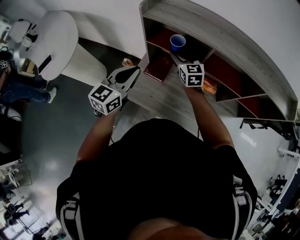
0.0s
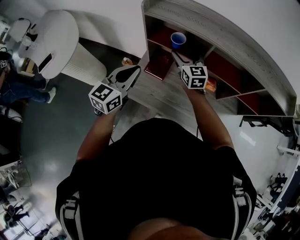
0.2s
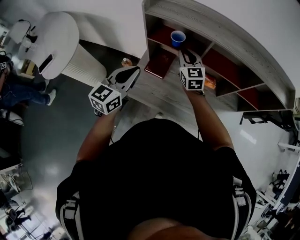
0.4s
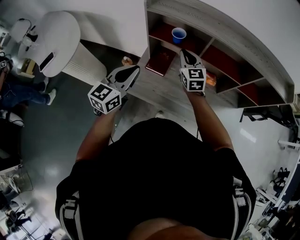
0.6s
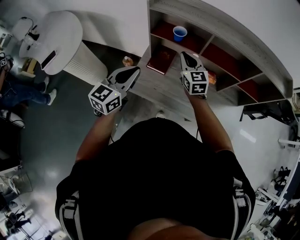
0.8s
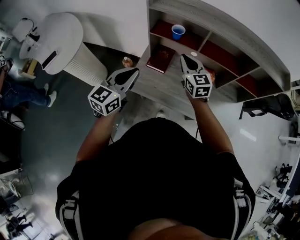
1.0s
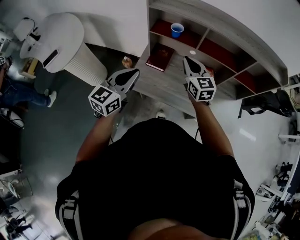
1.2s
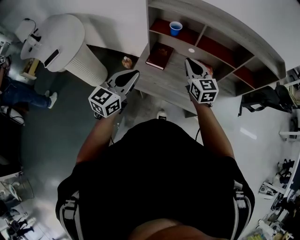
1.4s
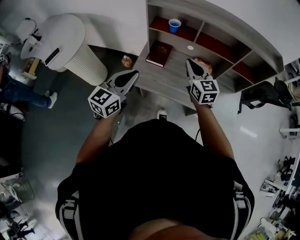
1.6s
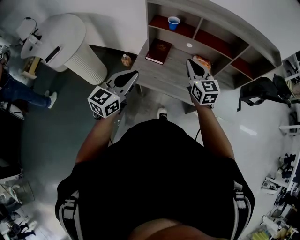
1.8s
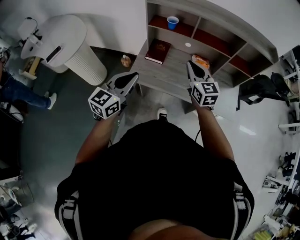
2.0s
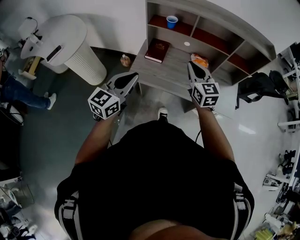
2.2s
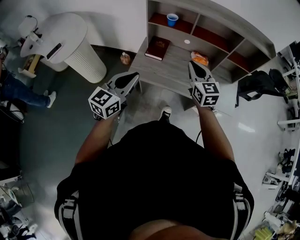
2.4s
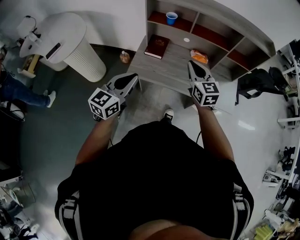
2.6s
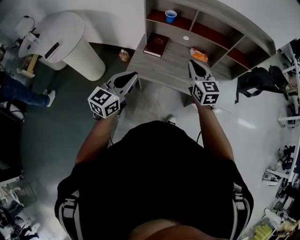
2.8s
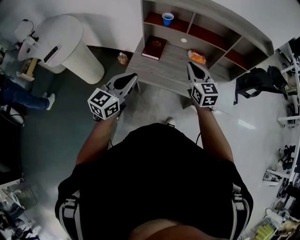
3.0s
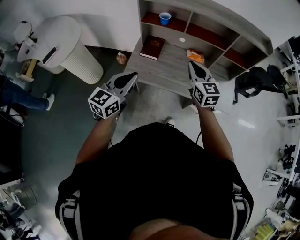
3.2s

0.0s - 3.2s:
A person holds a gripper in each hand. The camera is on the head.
0.0s - 1.6s: The two grippers go about 25 cm backward. The right gripper closes its fingers.
1.6s - 3.2s: The right gripper heads backward and to the right, covering some 10 cm. Meanwhile the left gripper goes some 5 cm backward.

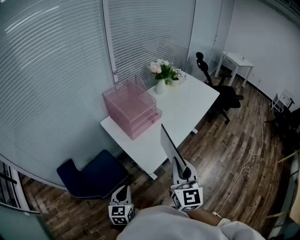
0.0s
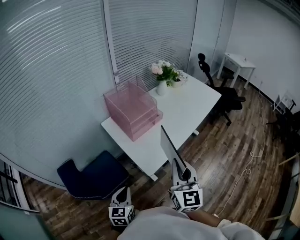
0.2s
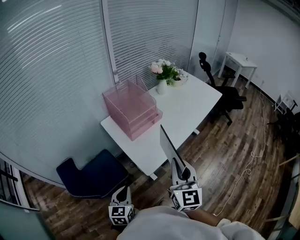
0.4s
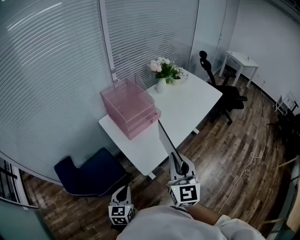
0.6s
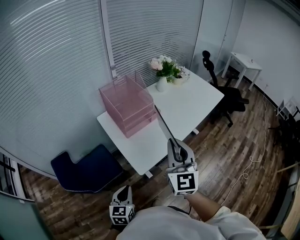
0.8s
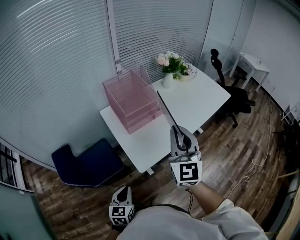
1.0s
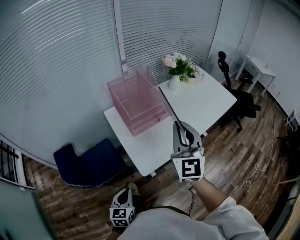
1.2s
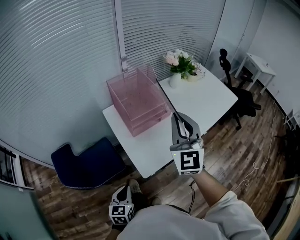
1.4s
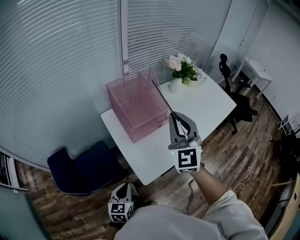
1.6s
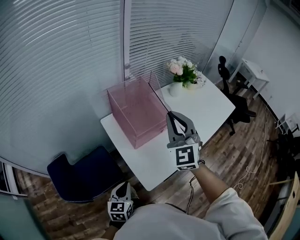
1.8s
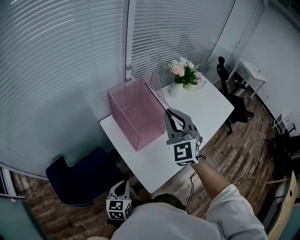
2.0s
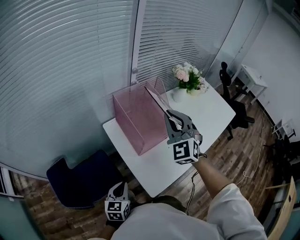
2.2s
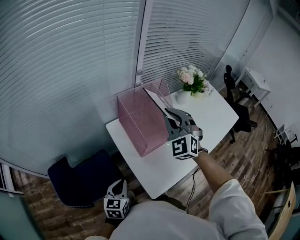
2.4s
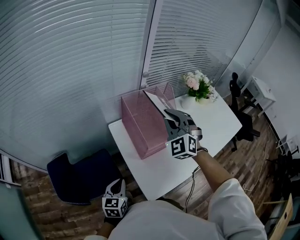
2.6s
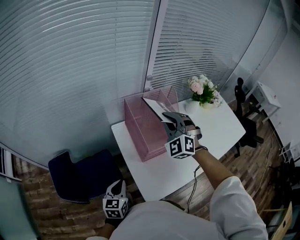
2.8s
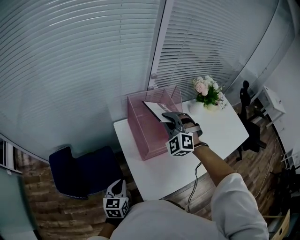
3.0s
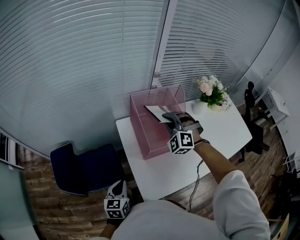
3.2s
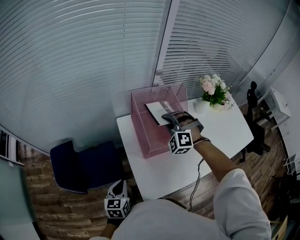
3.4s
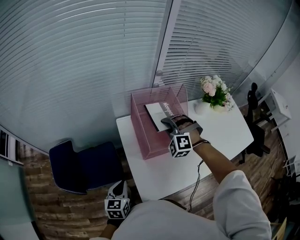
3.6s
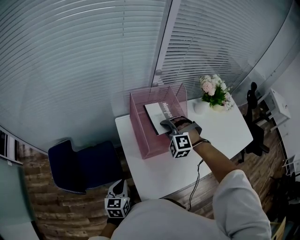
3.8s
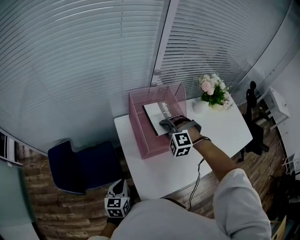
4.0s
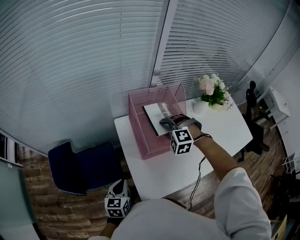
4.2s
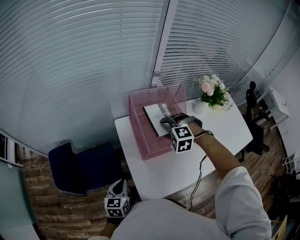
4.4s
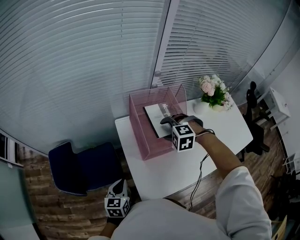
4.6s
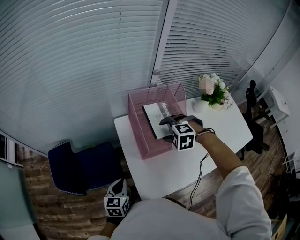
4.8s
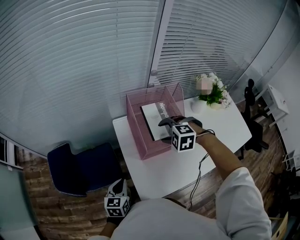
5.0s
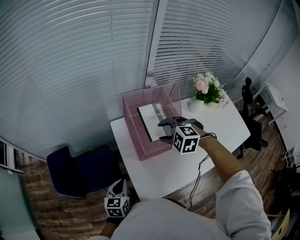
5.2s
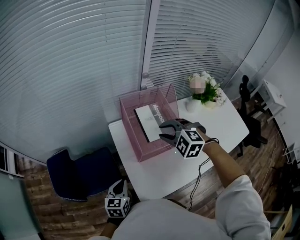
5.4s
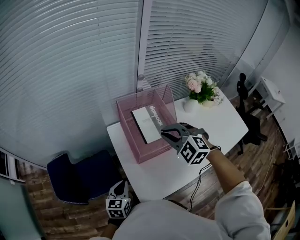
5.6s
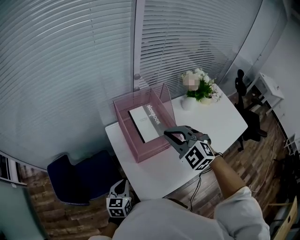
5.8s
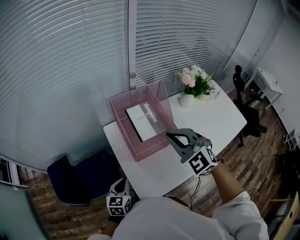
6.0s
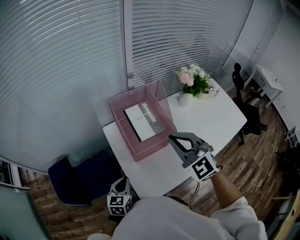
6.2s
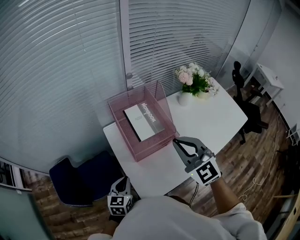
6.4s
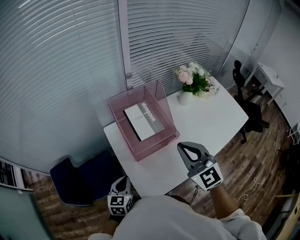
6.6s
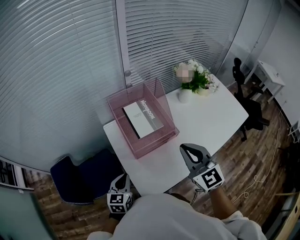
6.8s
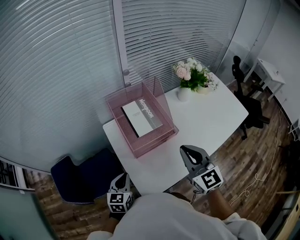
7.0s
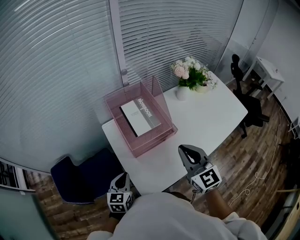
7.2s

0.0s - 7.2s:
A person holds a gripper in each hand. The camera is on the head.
0.0s - 1.4s: The left gripper is displaced downward and forward by approximately 10 cm. Meanwhile the right gripper heads forward, covering some 20 cm, and rotates roughly 20 degrees.
1.4s - 2.8s: The grippers both shift forward and to the left by about 25 cm. The right gripper rotates around the line of its fingers by roughly 40 degrees, counterclockwise from behind.
2.8s - 4.4s: The right gripper is displaced downward by approximately 15 cm, points its fingers approximately 40 degrees further downward, and opens up.
4.4s - 5.8s: The right gripper shifts about 15 cm upward and backward, tips its fingers upward by about 30 degrees, and closes up.
5.8s - 7.2s: The right gripper shifts approximately 15 cm backward and to the right, and swivels approximately 50 degrees.

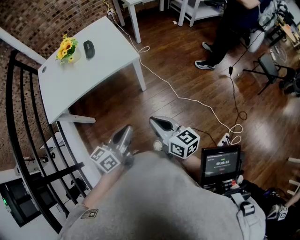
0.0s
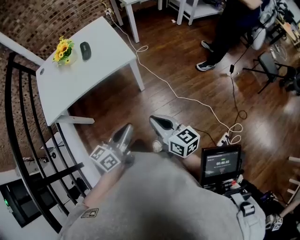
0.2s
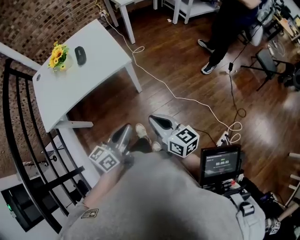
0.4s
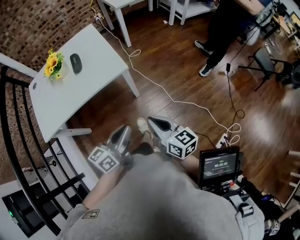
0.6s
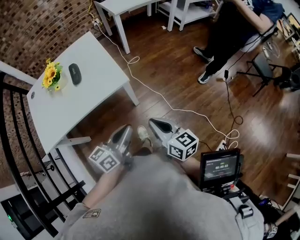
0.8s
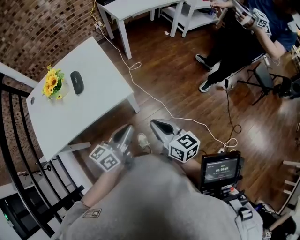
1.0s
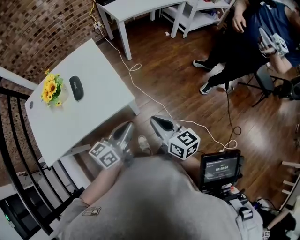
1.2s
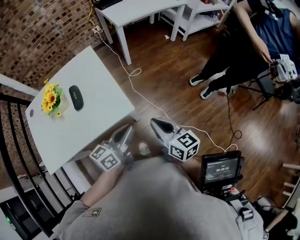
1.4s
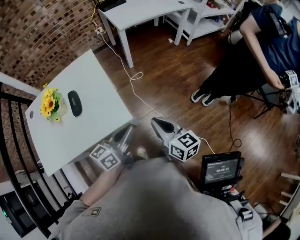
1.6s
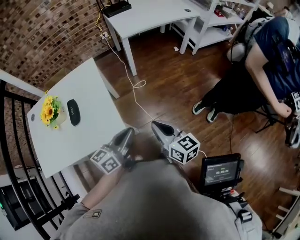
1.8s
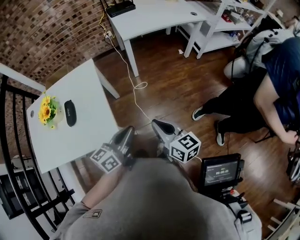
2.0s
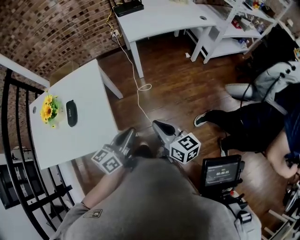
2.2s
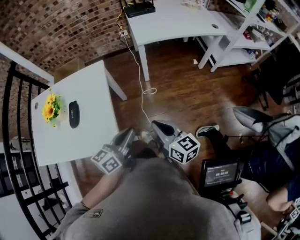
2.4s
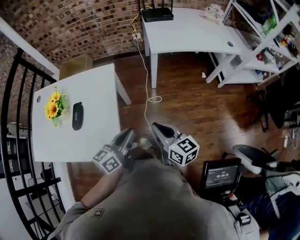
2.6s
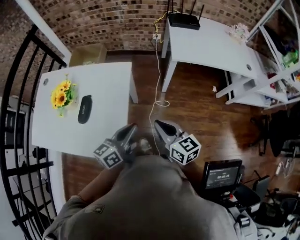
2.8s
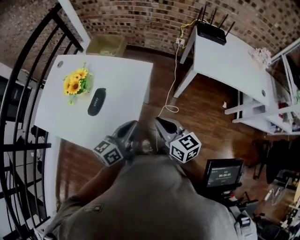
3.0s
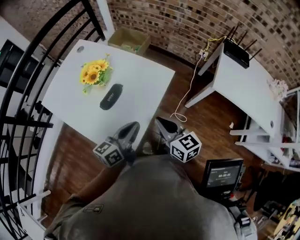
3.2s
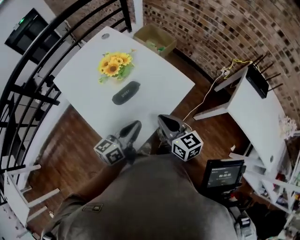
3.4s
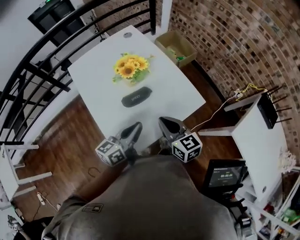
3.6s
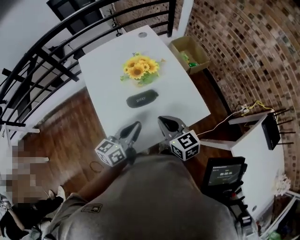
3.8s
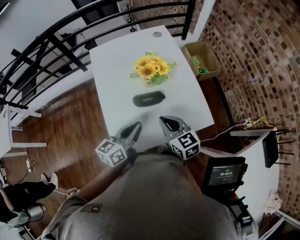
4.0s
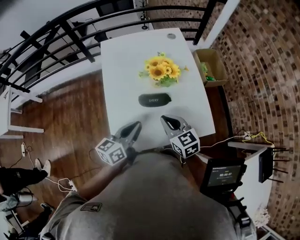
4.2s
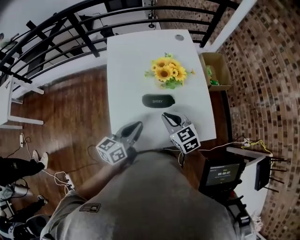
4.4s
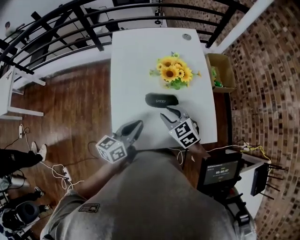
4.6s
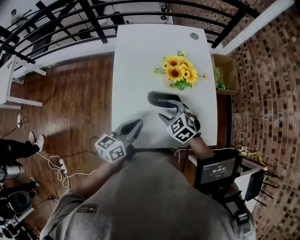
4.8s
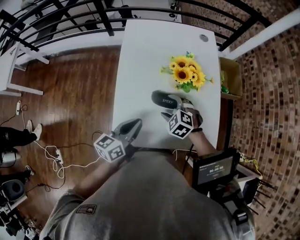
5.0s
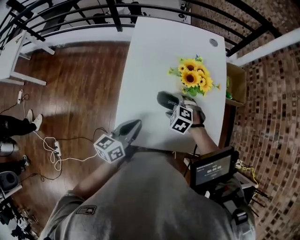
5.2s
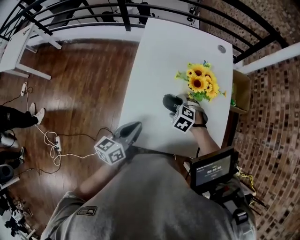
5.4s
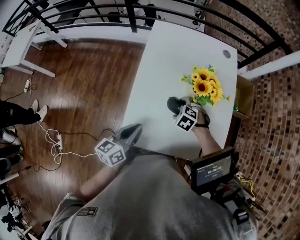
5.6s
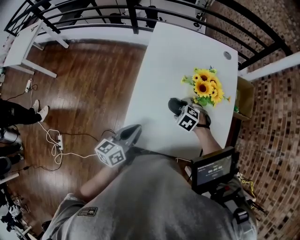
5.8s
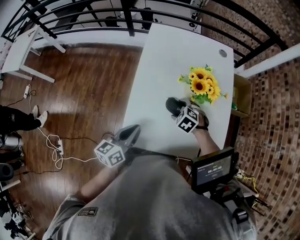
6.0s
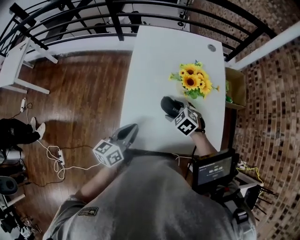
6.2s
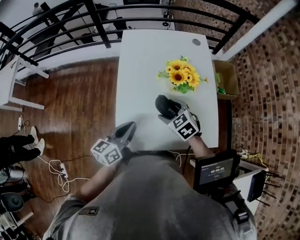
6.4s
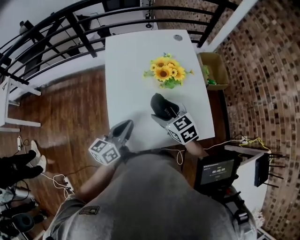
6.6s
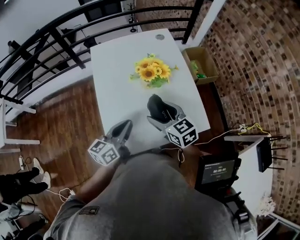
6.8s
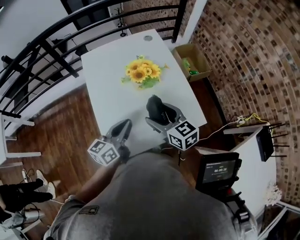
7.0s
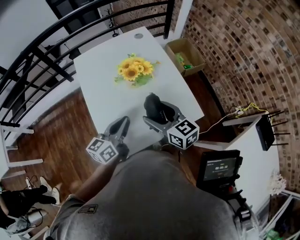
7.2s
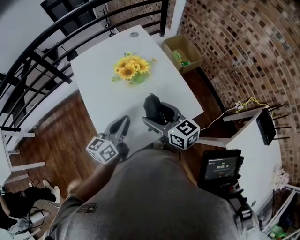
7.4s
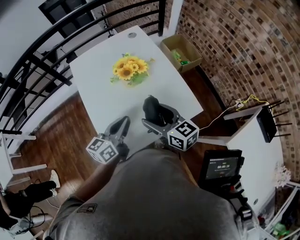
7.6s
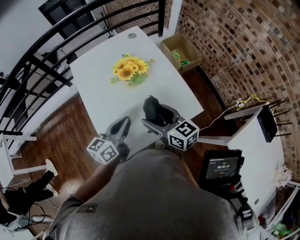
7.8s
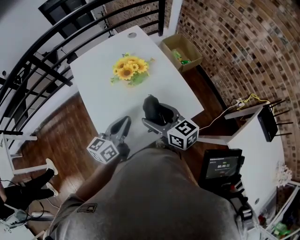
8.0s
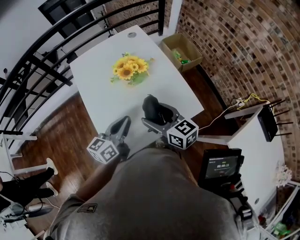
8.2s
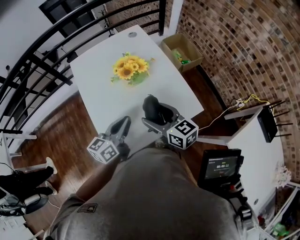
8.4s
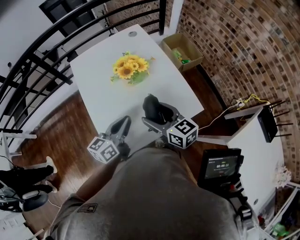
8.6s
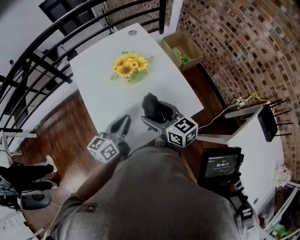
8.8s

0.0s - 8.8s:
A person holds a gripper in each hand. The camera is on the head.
0.0s - 1.4s: Both grippers move forward, about 25 cm.
1.4s - 3.0s: The right gripper changes place by some 35 cm, and rotates about 50 degrees, while the left gripper ends up about 30 cm from where it was, and swivels some 50 degrees.
3.0s - 4.4s: The right gripper shifts by approximately 25 cm, and turns by approximately 80 degrees; the left gripper changes place by some 15 cm, and swivels roughly 60 degrees.
4.4s - 5.8s: The left gripper shifts by approximately 10 cm, and rotates approximately 20 degrees. Meanwhile the right gripper shifts some 15 cm downward, tilts its fingers about 40 degrees downward, and opens up.
5.8s - 7.4s: The right gripper heads upward, covering roughly 20 cm, and points its fingers about 60 degrees further upward; the left gripper ends up roughly 15 cm from where it was, and turns by some 40 degrees.
7.4s - 8.8s: Both grippers stay put.

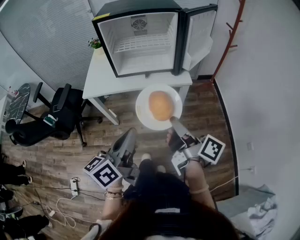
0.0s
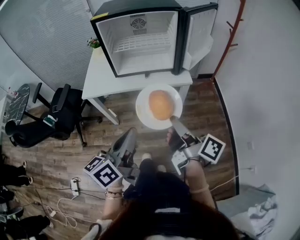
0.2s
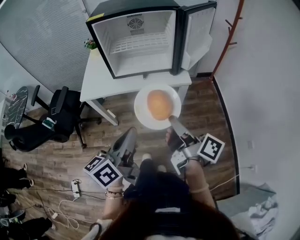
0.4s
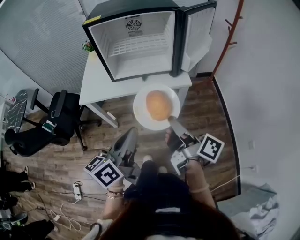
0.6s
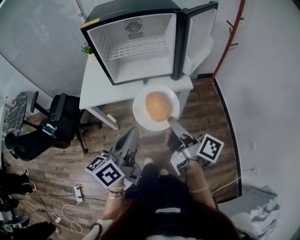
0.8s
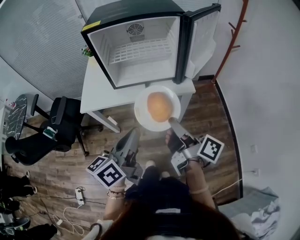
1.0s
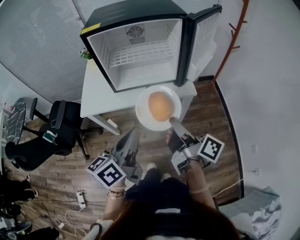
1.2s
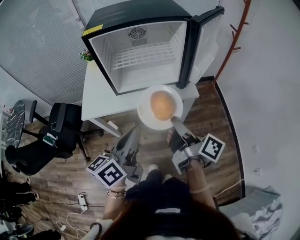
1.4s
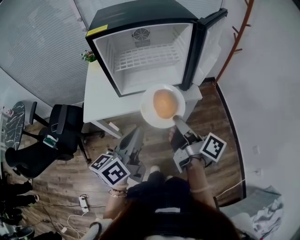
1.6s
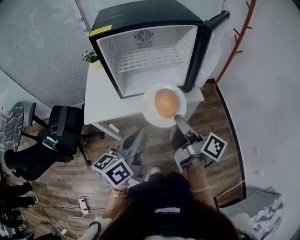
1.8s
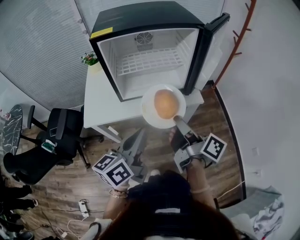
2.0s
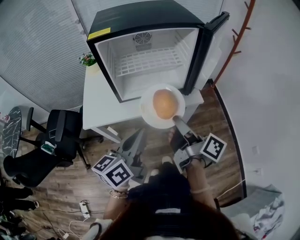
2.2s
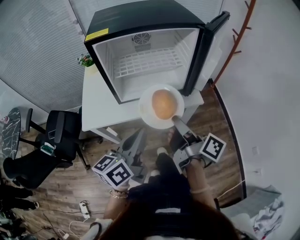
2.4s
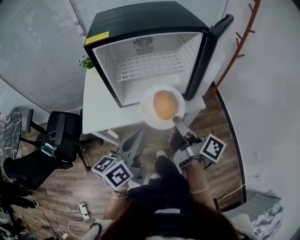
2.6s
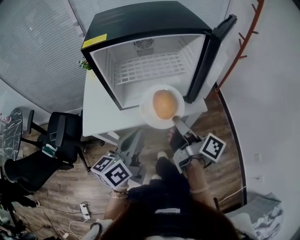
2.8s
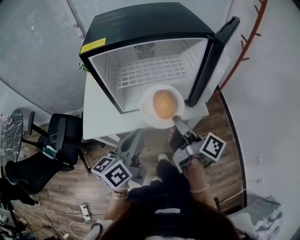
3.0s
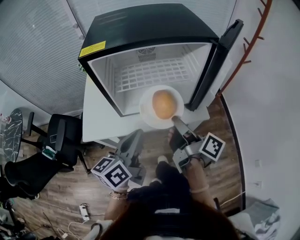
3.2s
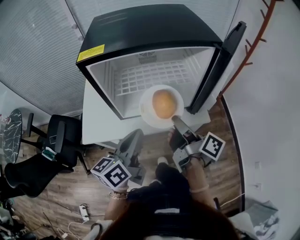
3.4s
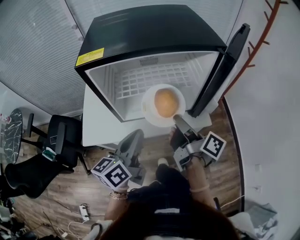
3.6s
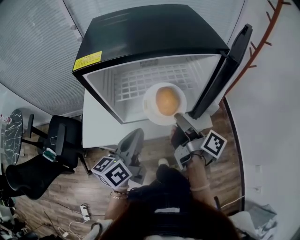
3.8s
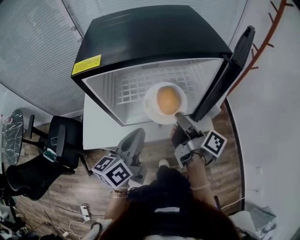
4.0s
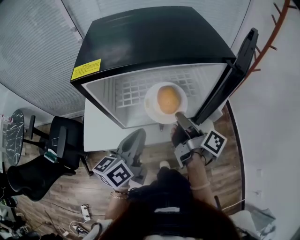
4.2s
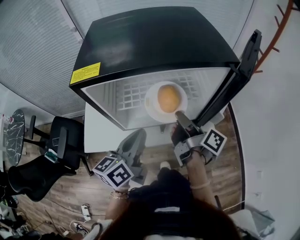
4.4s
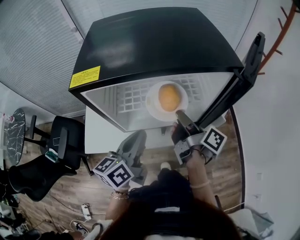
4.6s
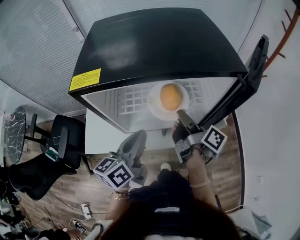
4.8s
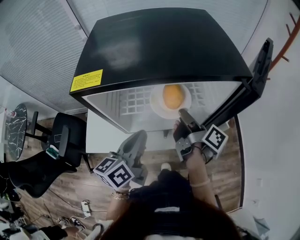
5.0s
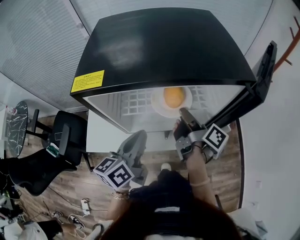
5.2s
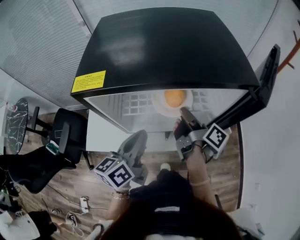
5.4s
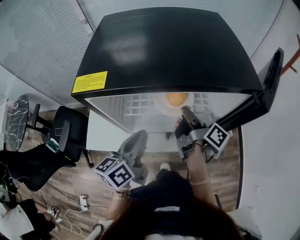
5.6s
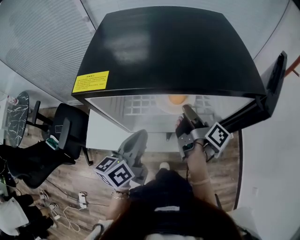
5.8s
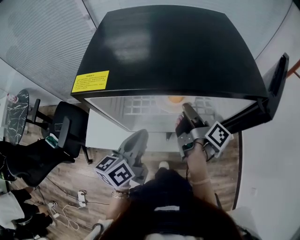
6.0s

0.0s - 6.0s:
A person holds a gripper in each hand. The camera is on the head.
0.0s - 1.6s: Both grippers move forward, approximately 15 cm.
1.6s - 3.0s: Both grippers travel together forward, roughly 10 cm.
3.0s - 4.4s: Both grippers move forward, about 15 cm.
4.4s - 6.0s: The right gripper heads forward, covering some 10 cm.
